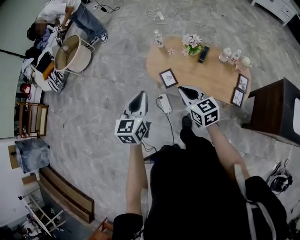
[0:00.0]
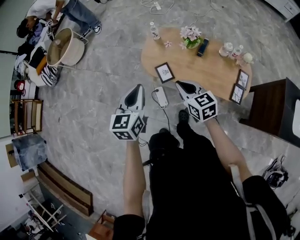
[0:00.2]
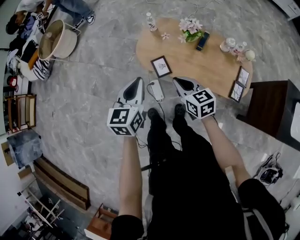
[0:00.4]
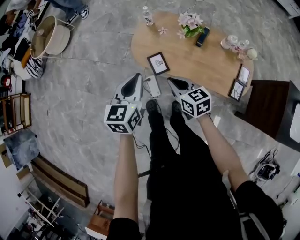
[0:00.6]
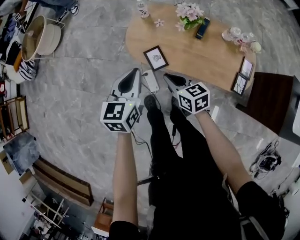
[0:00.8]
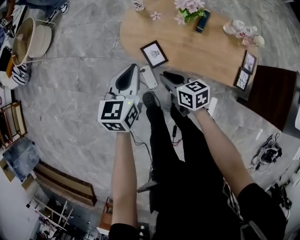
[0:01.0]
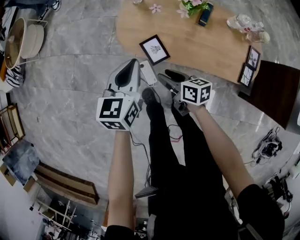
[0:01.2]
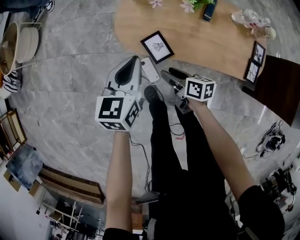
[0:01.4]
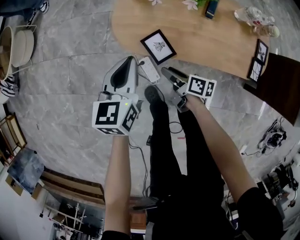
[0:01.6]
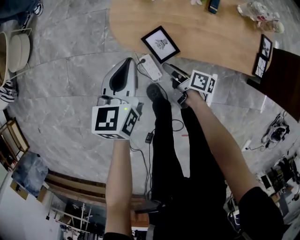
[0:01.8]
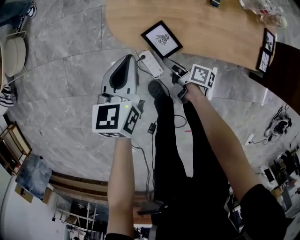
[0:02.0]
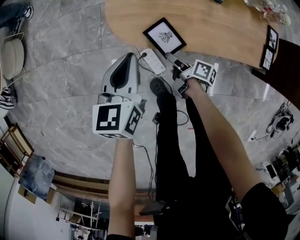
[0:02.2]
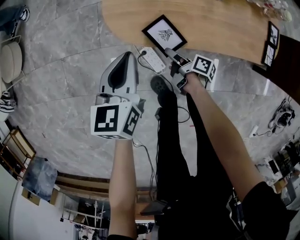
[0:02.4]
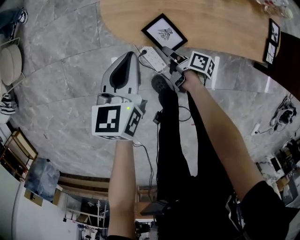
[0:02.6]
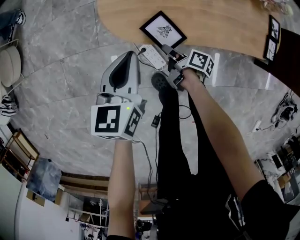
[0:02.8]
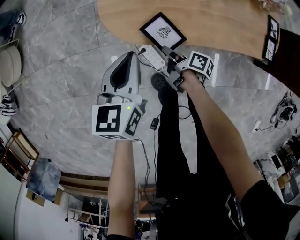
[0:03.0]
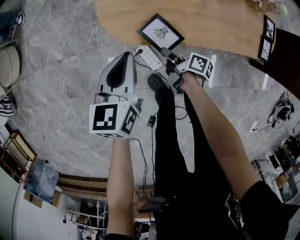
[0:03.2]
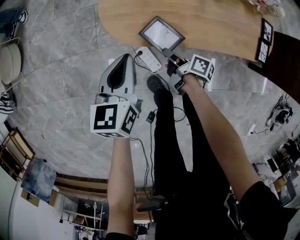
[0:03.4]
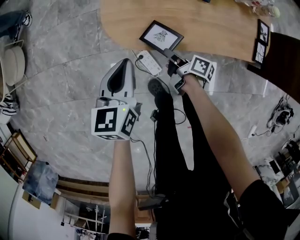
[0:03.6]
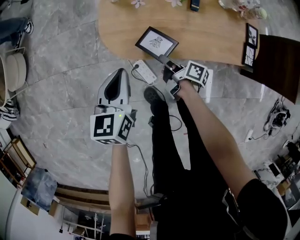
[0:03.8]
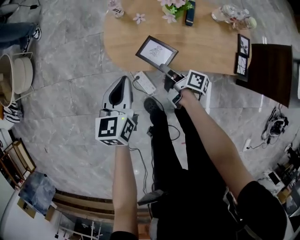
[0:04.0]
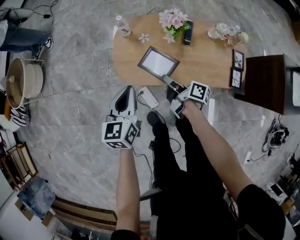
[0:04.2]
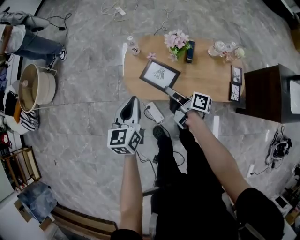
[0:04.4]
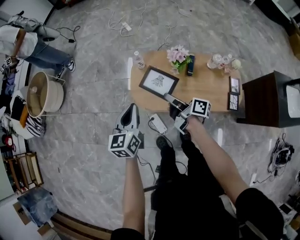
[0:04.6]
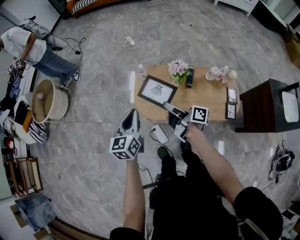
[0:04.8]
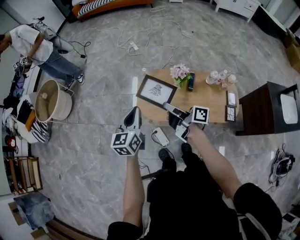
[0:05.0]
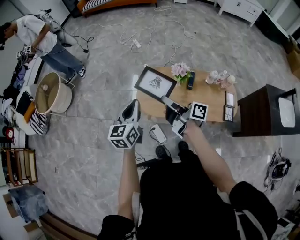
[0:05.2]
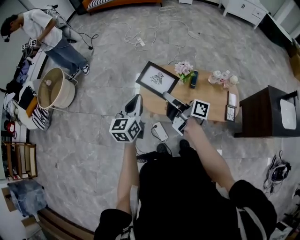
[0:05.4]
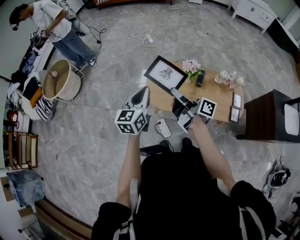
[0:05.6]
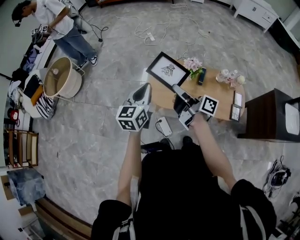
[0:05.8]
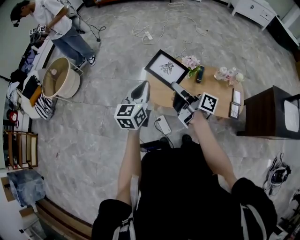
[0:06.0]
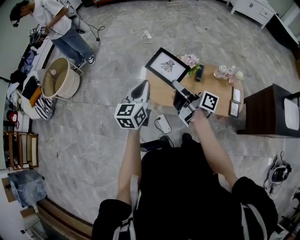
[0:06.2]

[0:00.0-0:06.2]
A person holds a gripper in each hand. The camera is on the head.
0.0 to 1.6 s: The left gripper heads downward and forward, covering approximately 35 cm; the right gripper travels downward by roughly 40 cm, rolls clockwise, seen from behind, by roughly 60 degrees, and opens.
1.6 to 3.2 s: Both grippers travel together downward, roughly 10 cm. The right gripper swivels roughly 30 degrees, and closes its fingers.
3.2 to 4.6 s: Both grippers move upward, approximately 35 cm. The right gripper swivels approximately 30 degrees.
4.6 to 6.2 s: Both grippers move upward, roughly 15 cm.

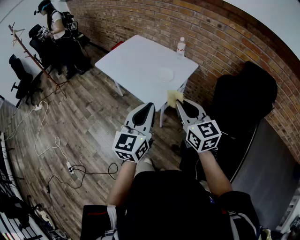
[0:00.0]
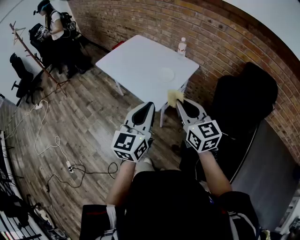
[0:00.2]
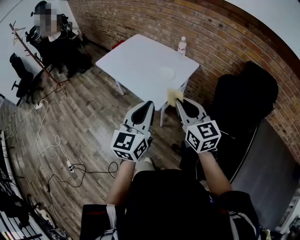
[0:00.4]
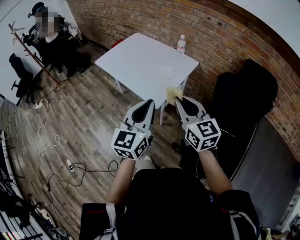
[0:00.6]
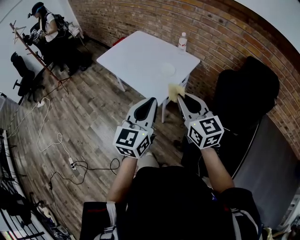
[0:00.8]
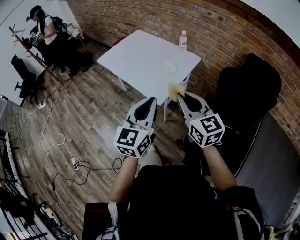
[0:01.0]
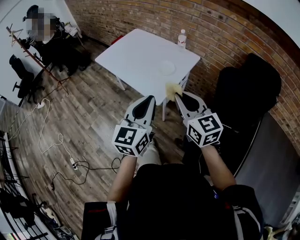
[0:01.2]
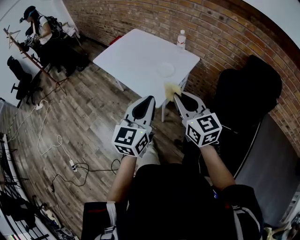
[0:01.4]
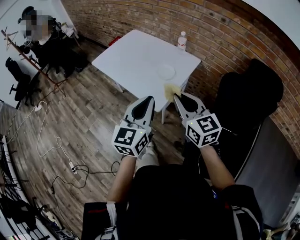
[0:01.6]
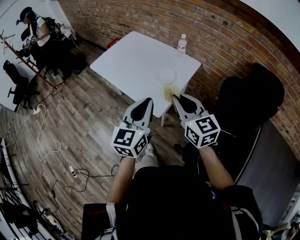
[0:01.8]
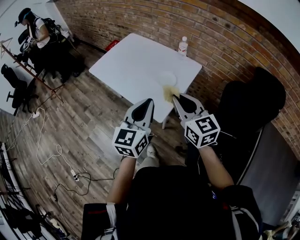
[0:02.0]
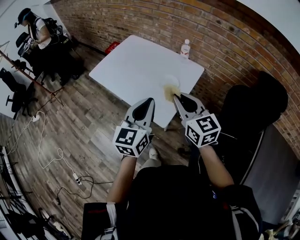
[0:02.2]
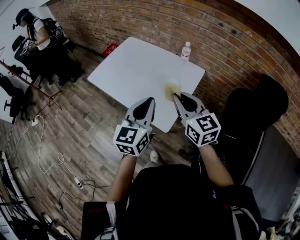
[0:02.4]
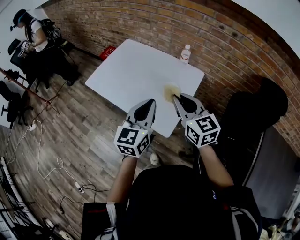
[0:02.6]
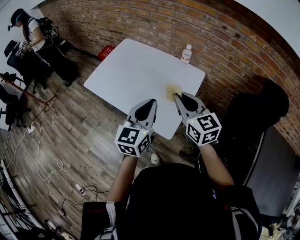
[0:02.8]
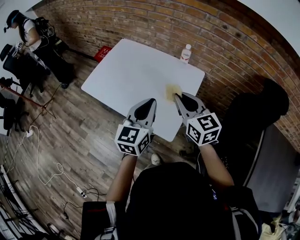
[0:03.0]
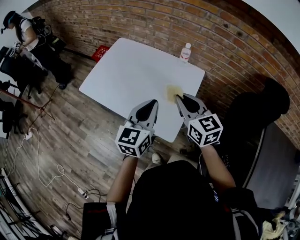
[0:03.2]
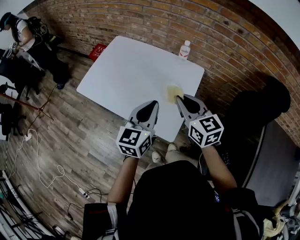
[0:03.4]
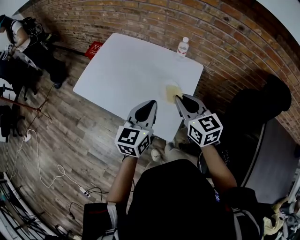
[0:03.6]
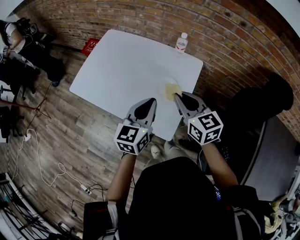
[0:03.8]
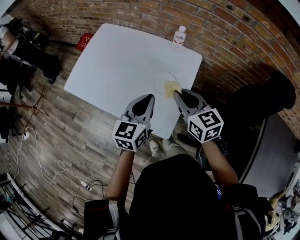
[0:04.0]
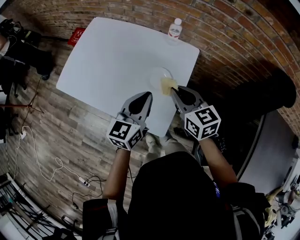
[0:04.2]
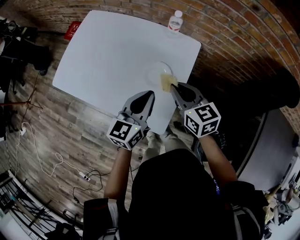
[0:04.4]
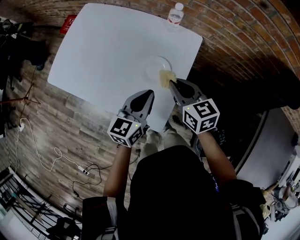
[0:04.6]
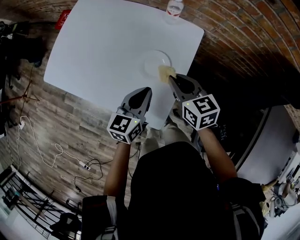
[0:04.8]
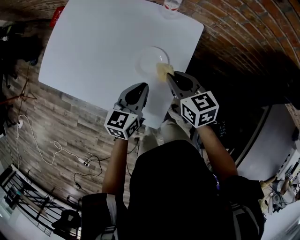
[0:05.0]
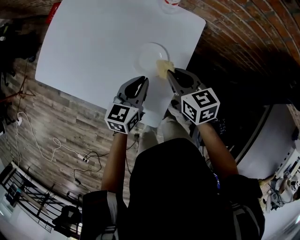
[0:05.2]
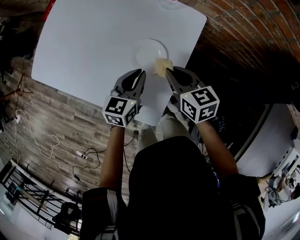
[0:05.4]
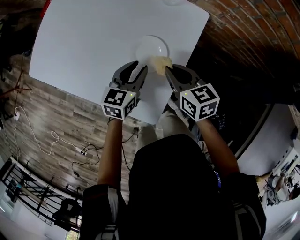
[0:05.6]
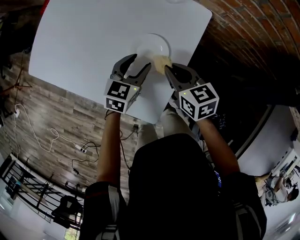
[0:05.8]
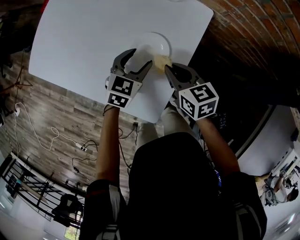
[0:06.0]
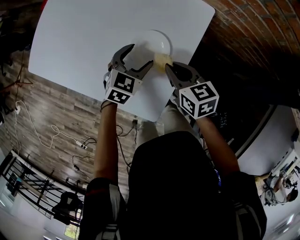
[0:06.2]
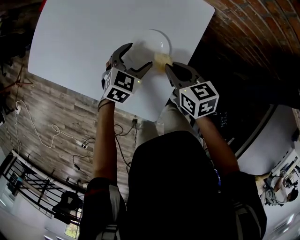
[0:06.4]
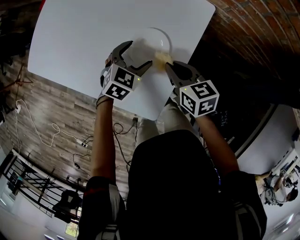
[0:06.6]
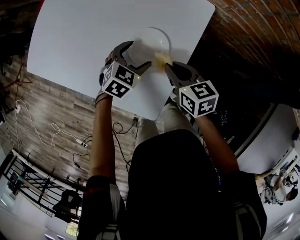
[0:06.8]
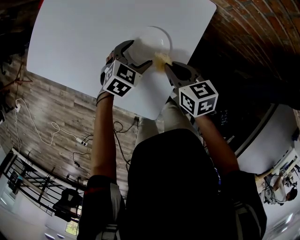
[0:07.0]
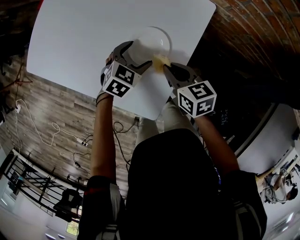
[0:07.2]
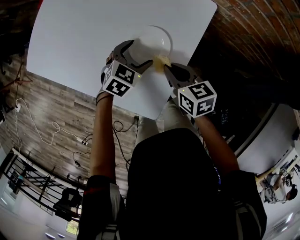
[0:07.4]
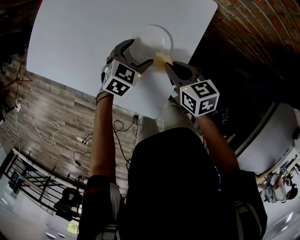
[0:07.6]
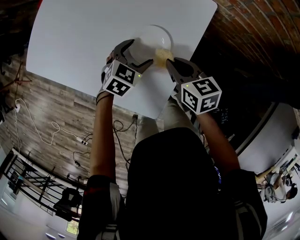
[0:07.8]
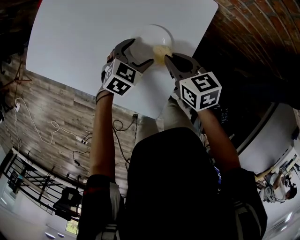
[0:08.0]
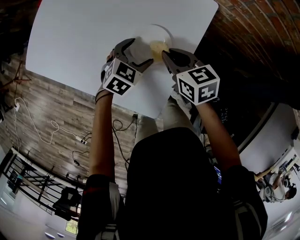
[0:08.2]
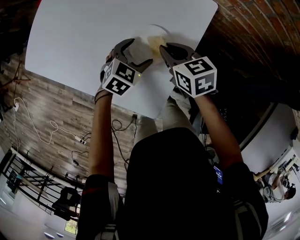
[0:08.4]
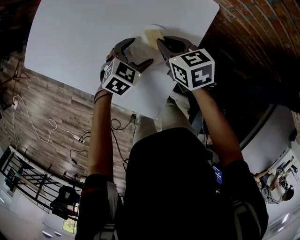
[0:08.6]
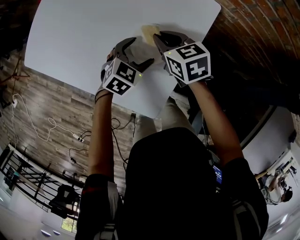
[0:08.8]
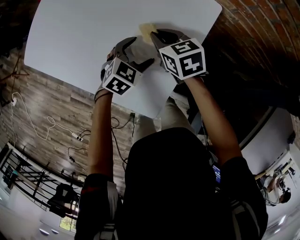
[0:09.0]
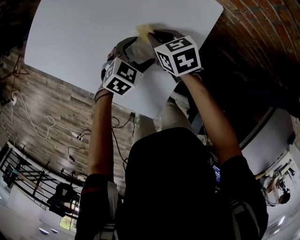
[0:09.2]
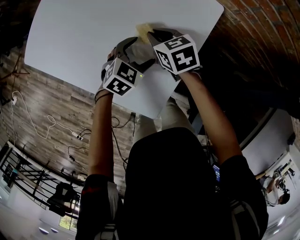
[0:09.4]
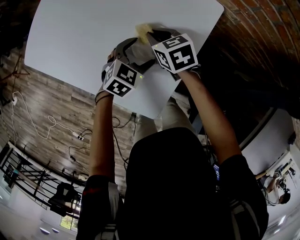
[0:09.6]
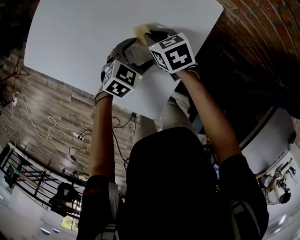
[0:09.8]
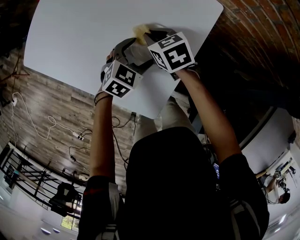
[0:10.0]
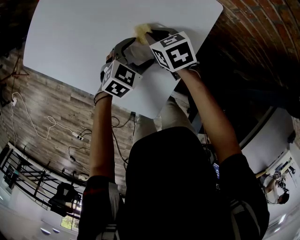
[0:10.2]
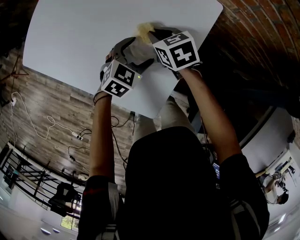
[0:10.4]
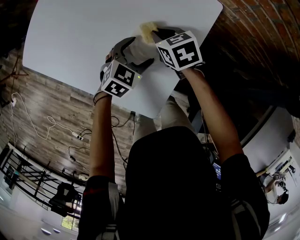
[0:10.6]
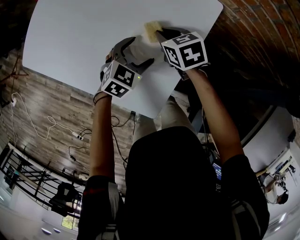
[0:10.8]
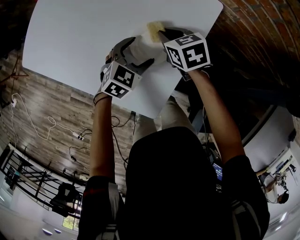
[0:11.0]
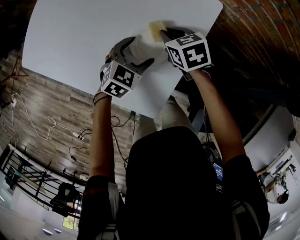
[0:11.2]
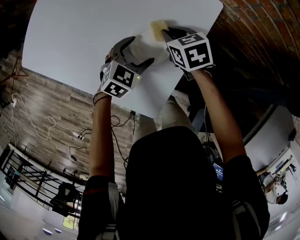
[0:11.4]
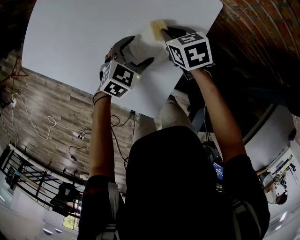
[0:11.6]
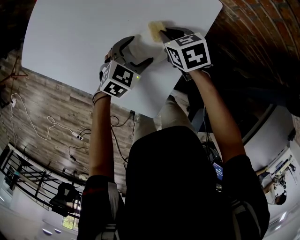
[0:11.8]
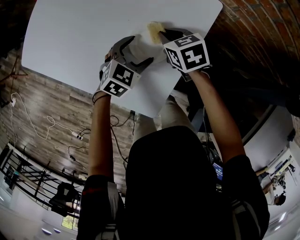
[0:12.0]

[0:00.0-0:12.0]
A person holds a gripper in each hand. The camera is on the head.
0.0 to 1.6 s: The two grippers go some 5 cm forward.
1.6 to 3.0 s: Both grippers move forward, about 25 cm.
3.0 to 4.4 s: Both grippers travel together downward, forward and to the right, about 15 cm.
4.4 to 6.0 s: The right gripper shifts approximately 15 cm downward, while the left gripper moves downward and forward, roughly 20 cm, changes its angle by approximately 30 degrees, and opens.
6.0 to 7.6 s: The grippers make only small movements.
7.6 to 9.0 s: The right gripper is displaced forward and to the left by approximately 10 cm.
9.0 to 12.0 s: There are only small adjustments of the grippers.

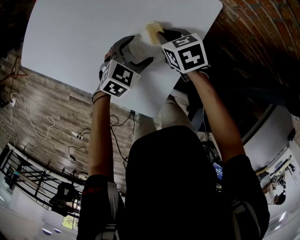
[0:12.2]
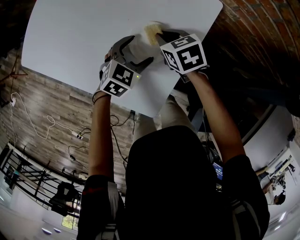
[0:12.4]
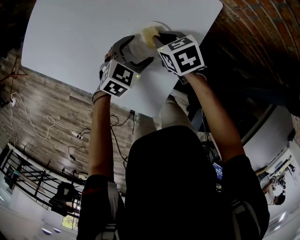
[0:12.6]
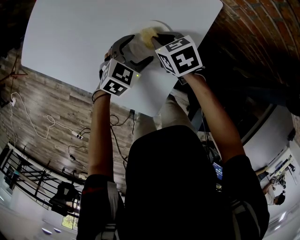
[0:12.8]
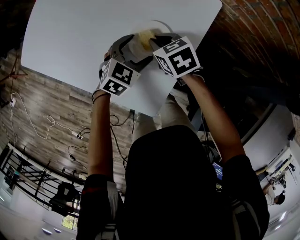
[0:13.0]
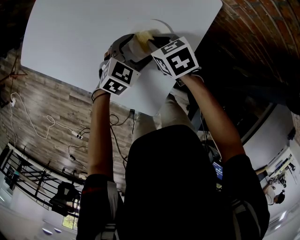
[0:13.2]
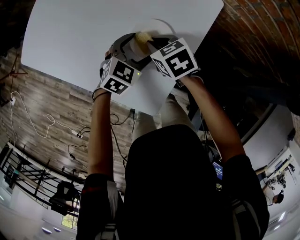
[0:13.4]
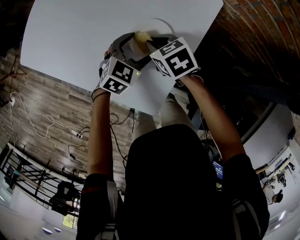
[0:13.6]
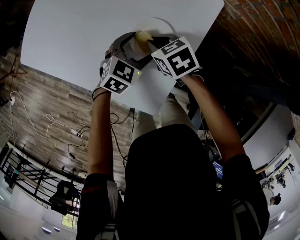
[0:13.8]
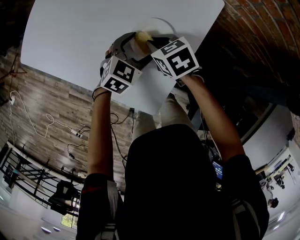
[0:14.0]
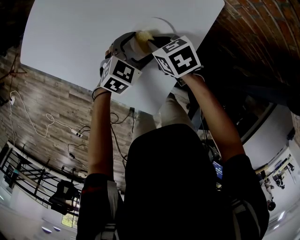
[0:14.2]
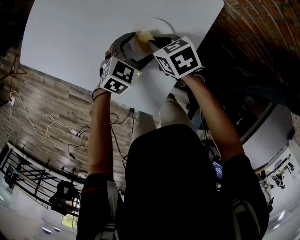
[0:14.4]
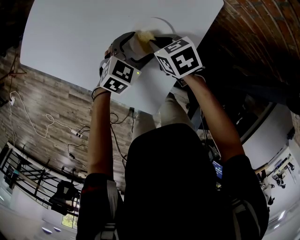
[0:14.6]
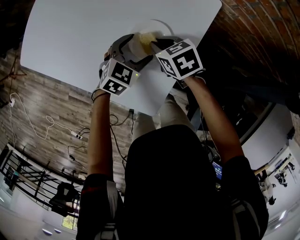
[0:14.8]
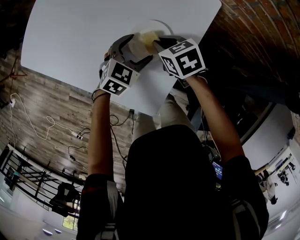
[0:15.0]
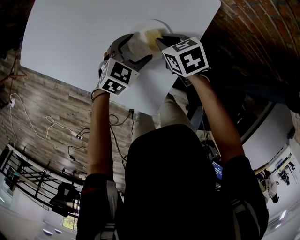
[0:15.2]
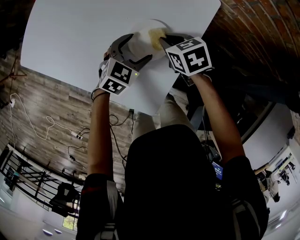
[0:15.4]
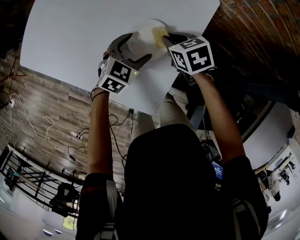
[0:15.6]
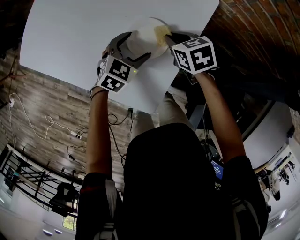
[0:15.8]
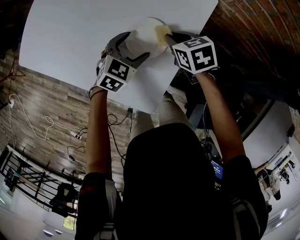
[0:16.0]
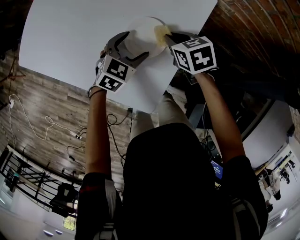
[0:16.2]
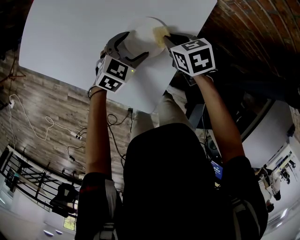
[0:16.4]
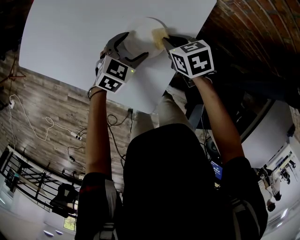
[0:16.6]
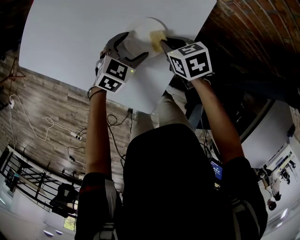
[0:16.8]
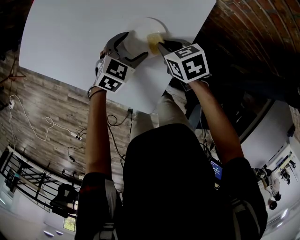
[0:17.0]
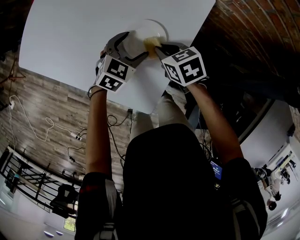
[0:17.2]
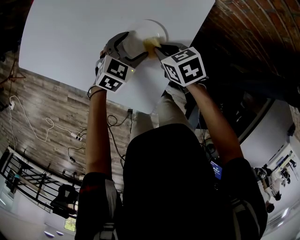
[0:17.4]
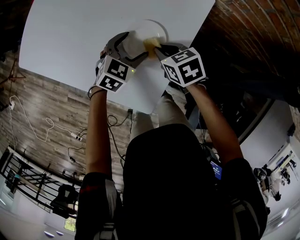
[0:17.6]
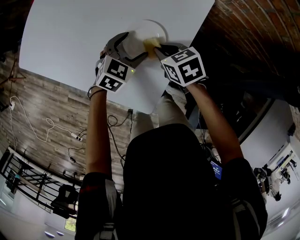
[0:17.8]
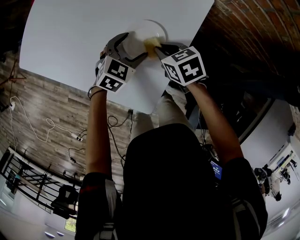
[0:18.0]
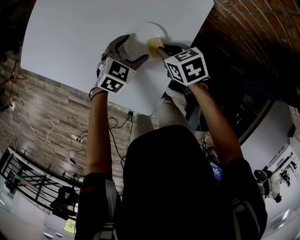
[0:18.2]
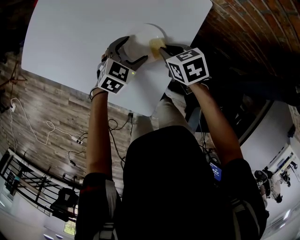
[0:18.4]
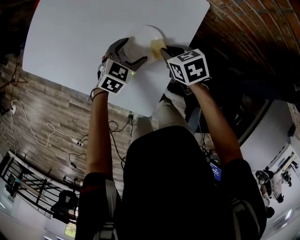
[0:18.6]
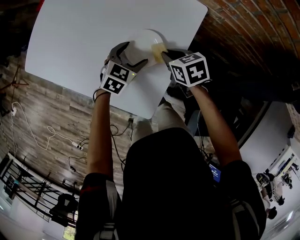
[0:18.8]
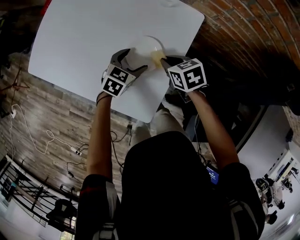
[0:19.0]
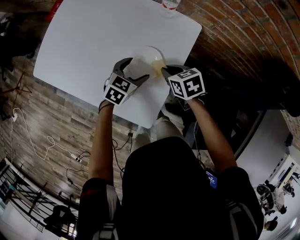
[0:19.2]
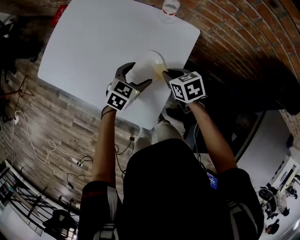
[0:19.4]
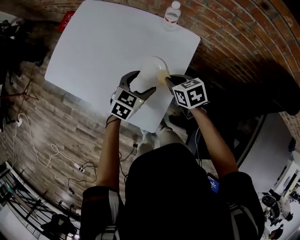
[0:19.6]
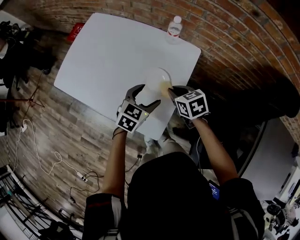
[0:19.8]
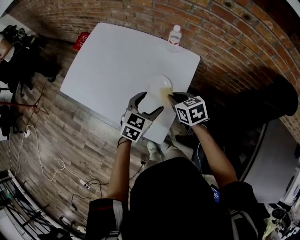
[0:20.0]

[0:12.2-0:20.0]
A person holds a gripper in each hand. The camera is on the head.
12.2 to 13.8 s: The right gripper moves approximately 5 cm.
13.8 to 15.4 s: The right gripper shifts about 5 cm to the right.
15.4 to 18.4 s: The grippers make only small movements.
18.4 to 20.0 s: The right gripper shifts roughly 15 cm upward. The left gripper shifts roughly 20 cm upward and backward.
